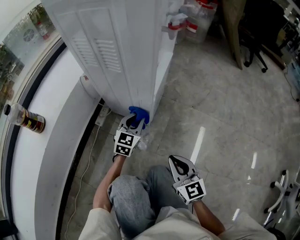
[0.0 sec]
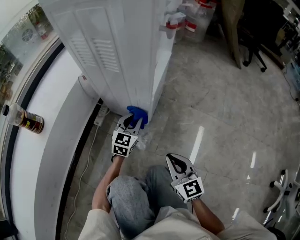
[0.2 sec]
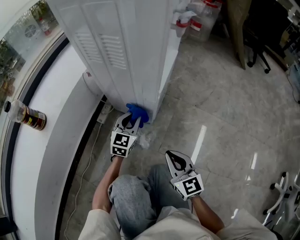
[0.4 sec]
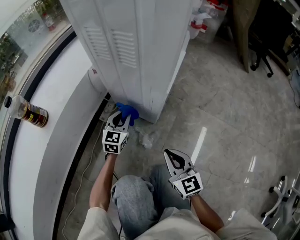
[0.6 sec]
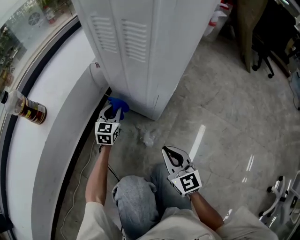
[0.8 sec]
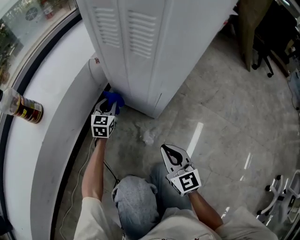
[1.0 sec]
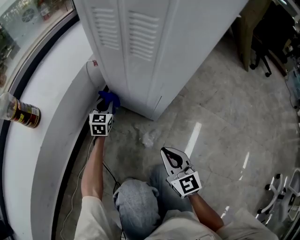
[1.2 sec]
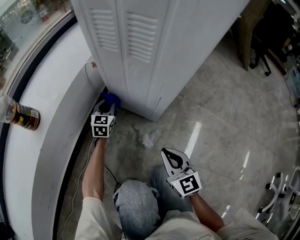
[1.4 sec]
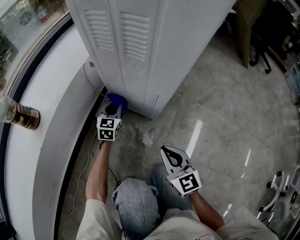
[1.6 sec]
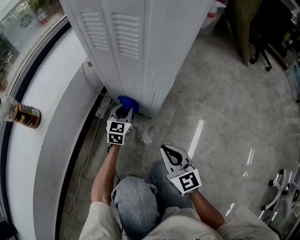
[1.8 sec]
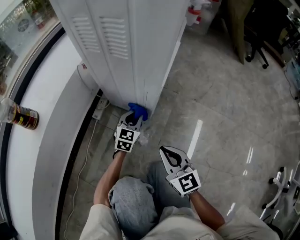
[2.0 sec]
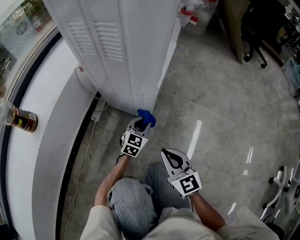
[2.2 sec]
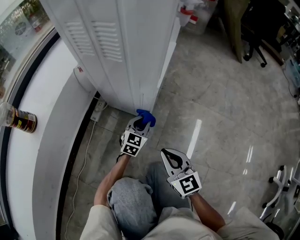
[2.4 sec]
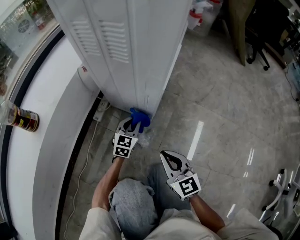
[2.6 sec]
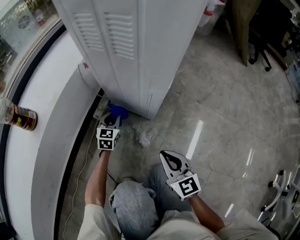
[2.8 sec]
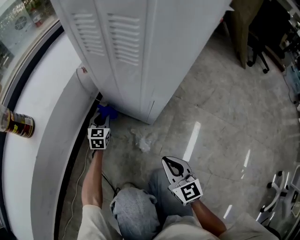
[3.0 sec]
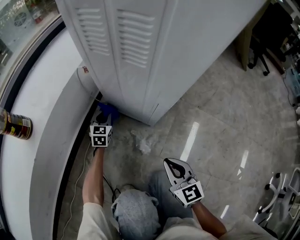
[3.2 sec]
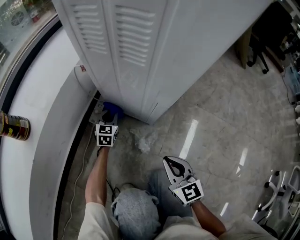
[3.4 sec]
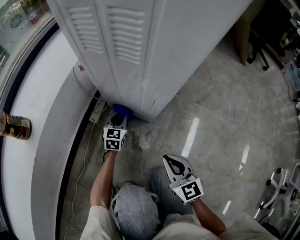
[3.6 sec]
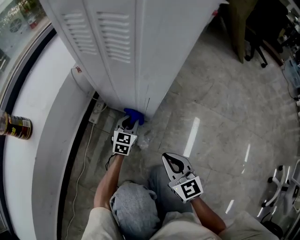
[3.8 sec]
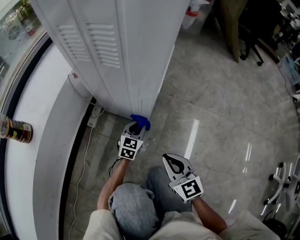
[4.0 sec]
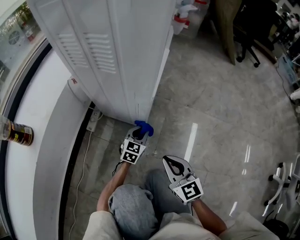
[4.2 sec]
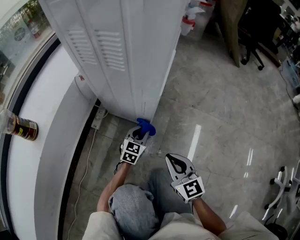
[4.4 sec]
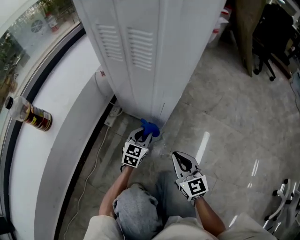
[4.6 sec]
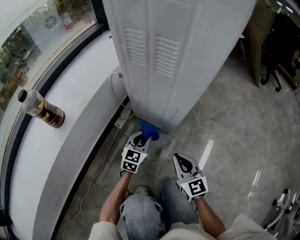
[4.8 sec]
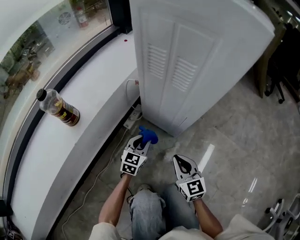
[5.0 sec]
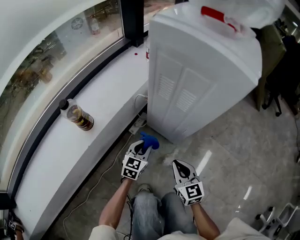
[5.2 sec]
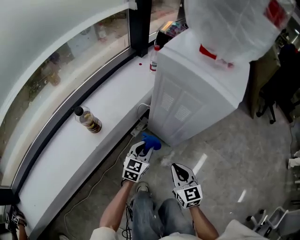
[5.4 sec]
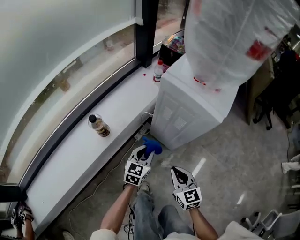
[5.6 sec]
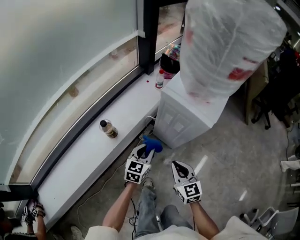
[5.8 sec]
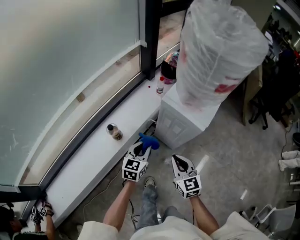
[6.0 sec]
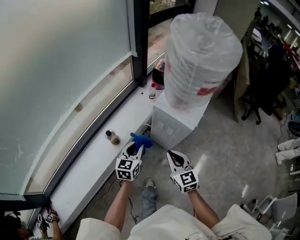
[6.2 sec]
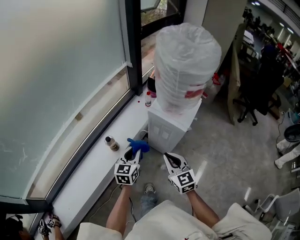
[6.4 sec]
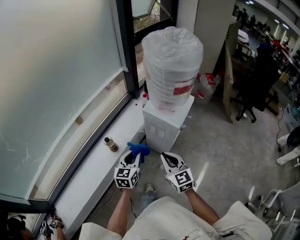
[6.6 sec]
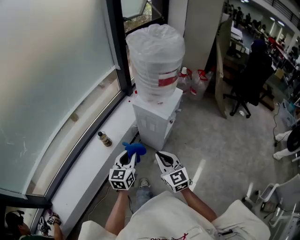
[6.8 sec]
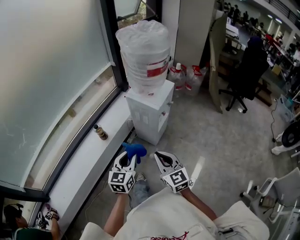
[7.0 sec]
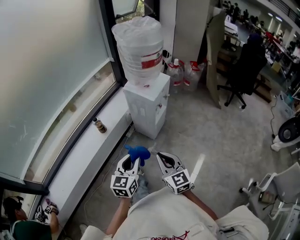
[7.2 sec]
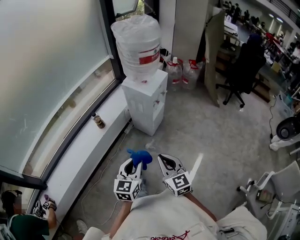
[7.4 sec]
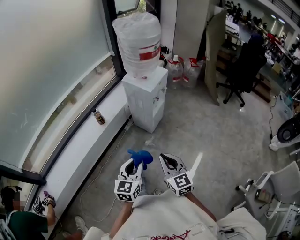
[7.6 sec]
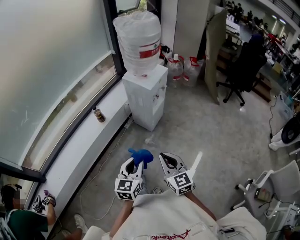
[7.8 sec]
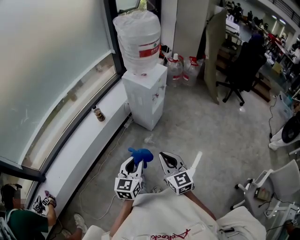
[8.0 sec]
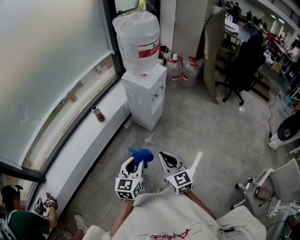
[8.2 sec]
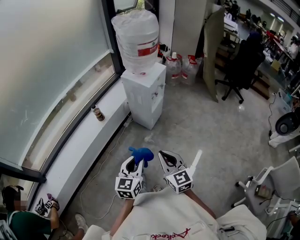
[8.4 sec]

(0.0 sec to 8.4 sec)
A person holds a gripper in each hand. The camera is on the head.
0.0 sec - 1.4 sec: The right gripper goes about 10 cm to the left and forward. The left gripper heads to the left, forward and downward, covering approximately 25 cm.
1.4 sec - 2.8 sec: The left gripper moves backward, approximately 5 cm, and reaches approximately 20 cm to the right, then returns.
2.8 sec - 4.2 sec: The left gripper is displaced to the right by some 20 cm, and turns by about 20 degrees.
4.2 sec - 5.6 sec: The grippers both shift upward and to the left by about 40 cm. The left gripper swivels some 30 degrees.
5.6 sec - 7.0 sec: Both grippers move upward and backward, roughly 40 cm.
7.0 sec - 8.4 sec: Both grippers move backward, roughly 20 cm.

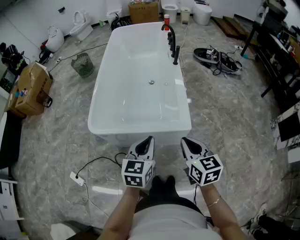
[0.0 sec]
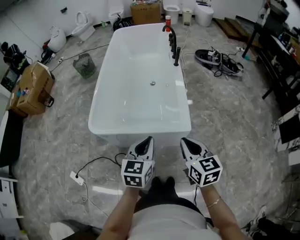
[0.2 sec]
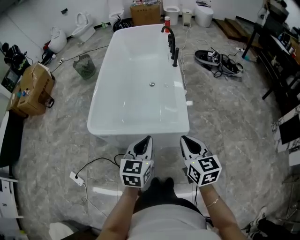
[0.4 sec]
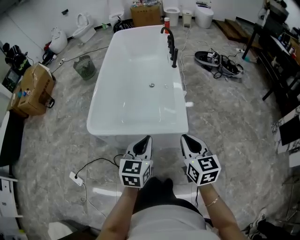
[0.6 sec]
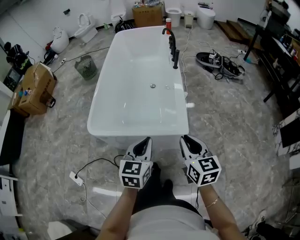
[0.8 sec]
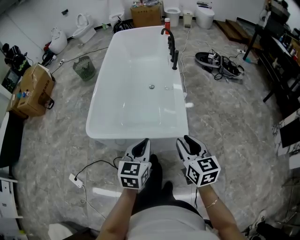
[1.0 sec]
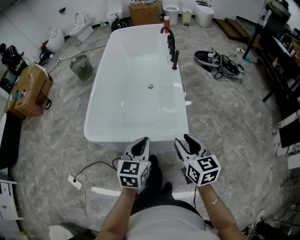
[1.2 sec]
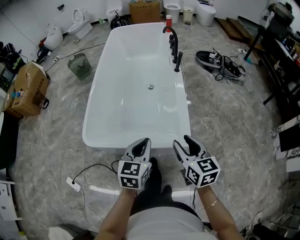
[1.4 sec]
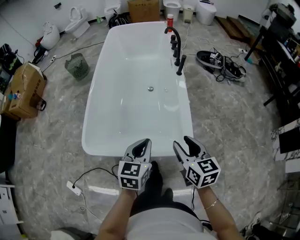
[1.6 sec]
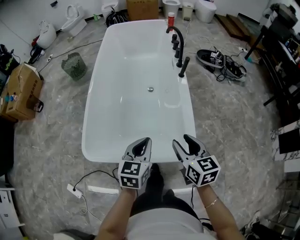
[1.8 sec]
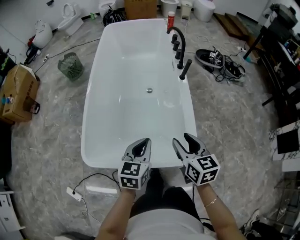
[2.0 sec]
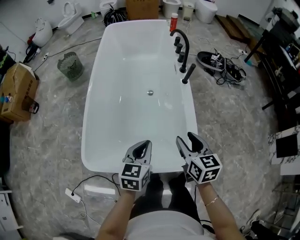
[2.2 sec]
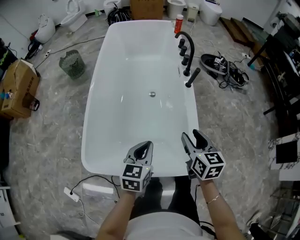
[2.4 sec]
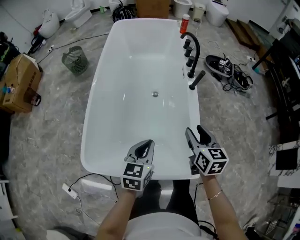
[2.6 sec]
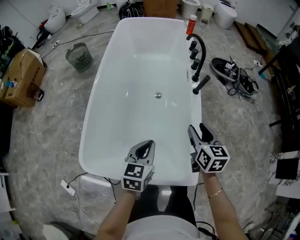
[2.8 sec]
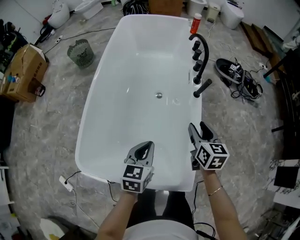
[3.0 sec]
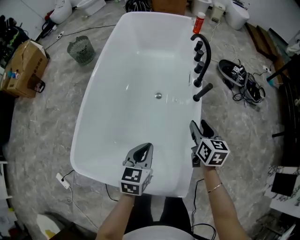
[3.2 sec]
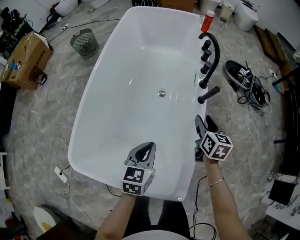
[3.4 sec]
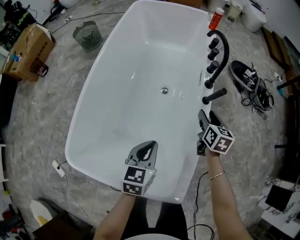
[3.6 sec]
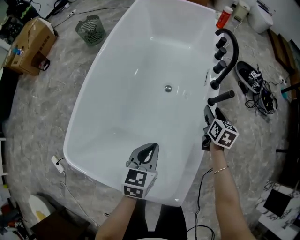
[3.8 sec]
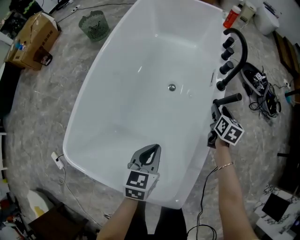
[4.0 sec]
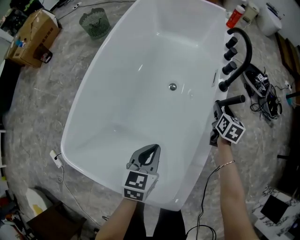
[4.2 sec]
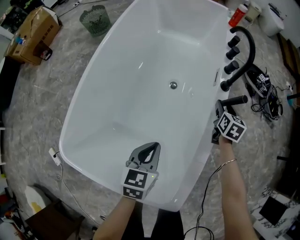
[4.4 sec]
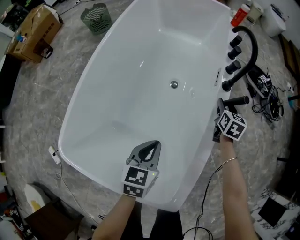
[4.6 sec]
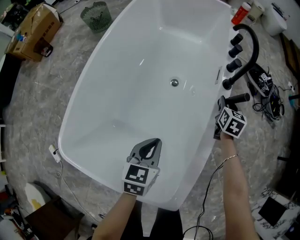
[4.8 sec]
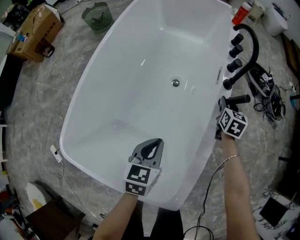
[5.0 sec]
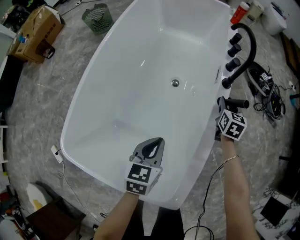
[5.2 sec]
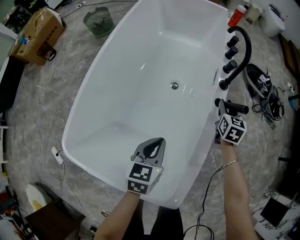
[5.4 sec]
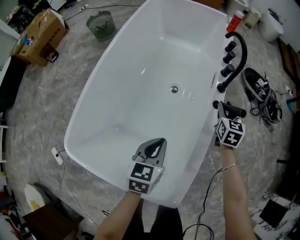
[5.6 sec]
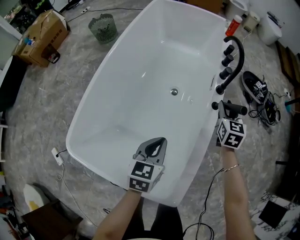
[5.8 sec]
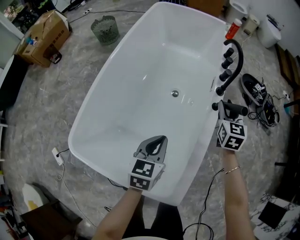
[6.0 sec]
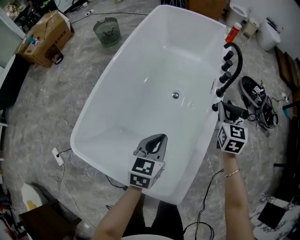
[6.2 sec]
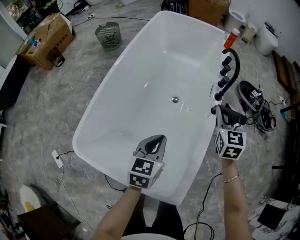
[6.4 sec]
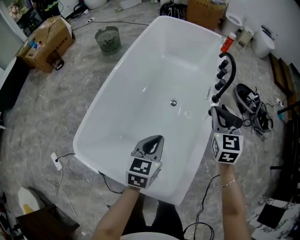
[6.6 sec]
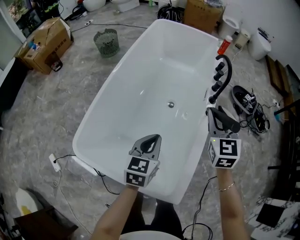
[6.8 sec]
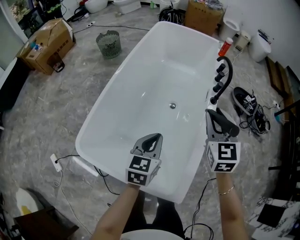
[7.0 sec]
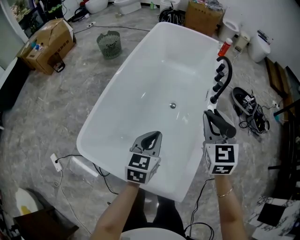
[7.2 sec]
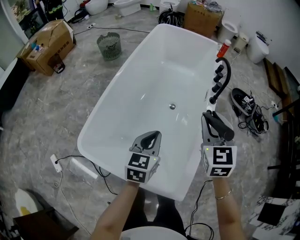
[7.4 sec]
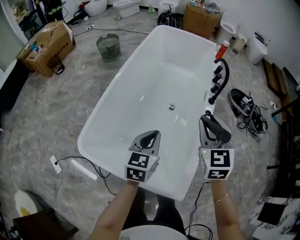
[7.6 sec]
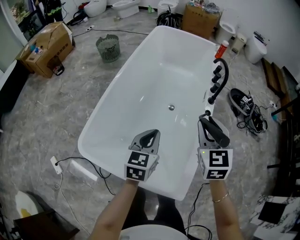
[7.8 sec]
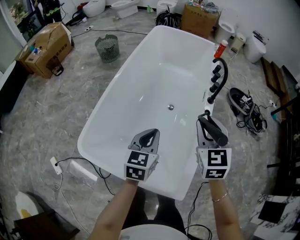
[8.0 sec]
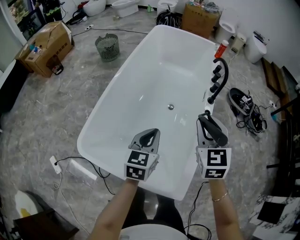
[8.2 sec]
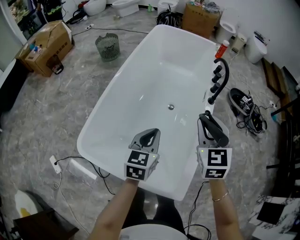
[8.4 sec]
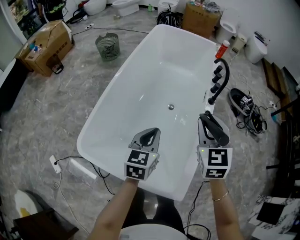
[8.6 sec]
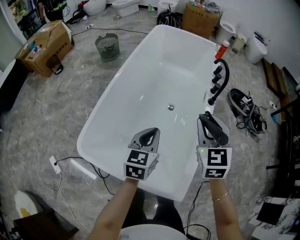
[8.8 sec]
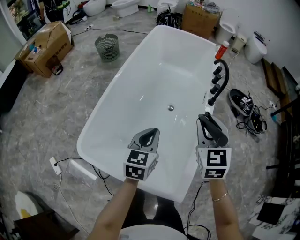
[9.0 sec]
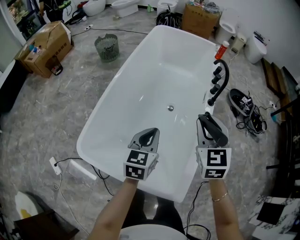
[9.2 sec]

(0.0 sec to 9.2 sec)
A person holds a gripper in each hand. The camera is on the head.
0.0 sec - 1.6 sec: The grippers both shift forward by some 20 cm. The right gripper opens.
1.6 sec - 3.0 sec: The two grippers go about 35 cm forward.
3.0 sec - 4.6 sec: The left gripper is displaced downward and forward by some 20 cm. The right gripper shifts roughly 40 cm forward and downward.
4.6 sec - 6.2 sec: The right gripper is displaced upward and backward by some 25 cm, and rotates about 20 degrees. Meanwhile the left gripper heads upward, covering roughly 10 cm.
6.2 sec - 7.6 sec: The left gripper heads upward, backward and to the left, covering some 15 cm. Meanwhile the right gripper moves backward, upward and to the left, roughly 30 cm.
7.6 sec - 9.2 sec: The grippers stay close to where they were, moving slightly.

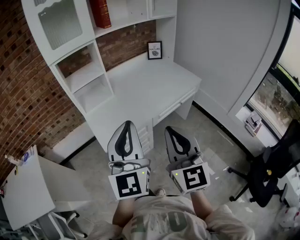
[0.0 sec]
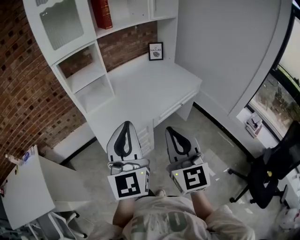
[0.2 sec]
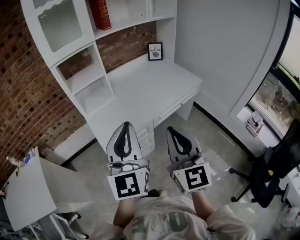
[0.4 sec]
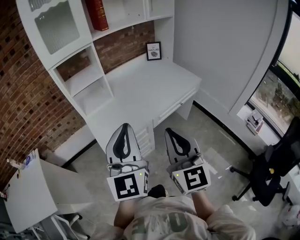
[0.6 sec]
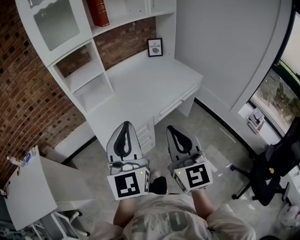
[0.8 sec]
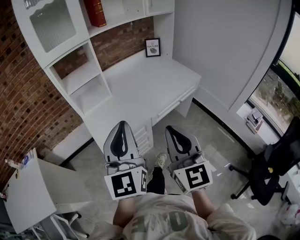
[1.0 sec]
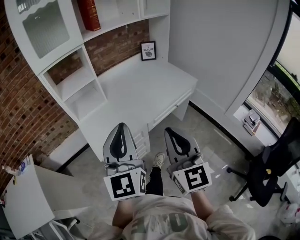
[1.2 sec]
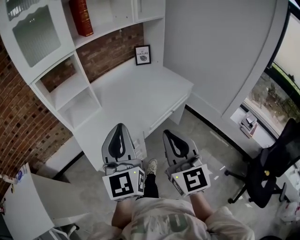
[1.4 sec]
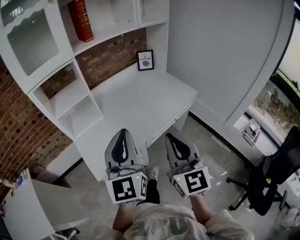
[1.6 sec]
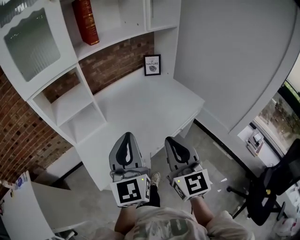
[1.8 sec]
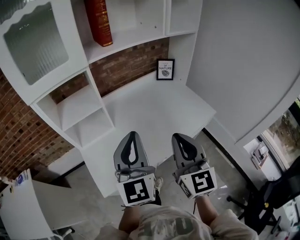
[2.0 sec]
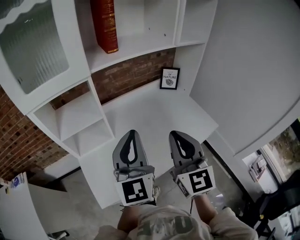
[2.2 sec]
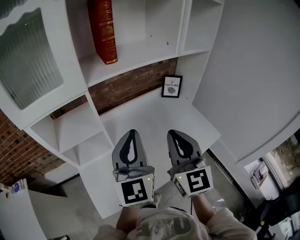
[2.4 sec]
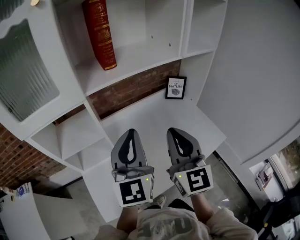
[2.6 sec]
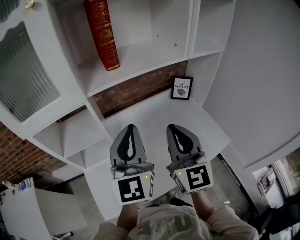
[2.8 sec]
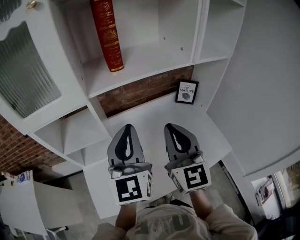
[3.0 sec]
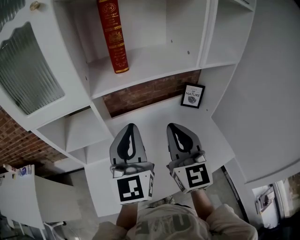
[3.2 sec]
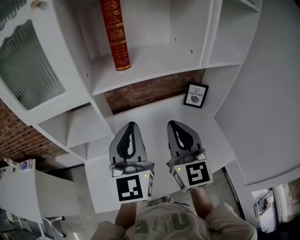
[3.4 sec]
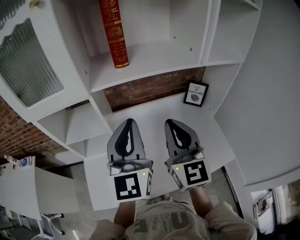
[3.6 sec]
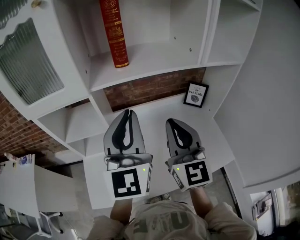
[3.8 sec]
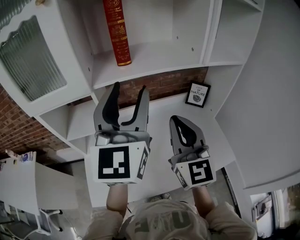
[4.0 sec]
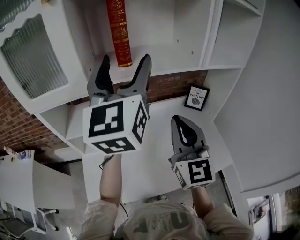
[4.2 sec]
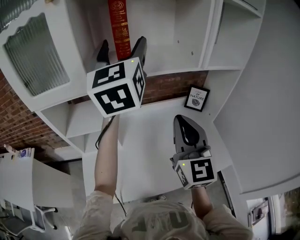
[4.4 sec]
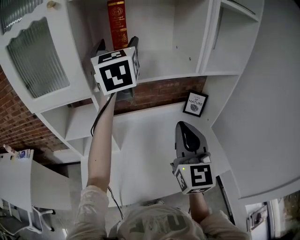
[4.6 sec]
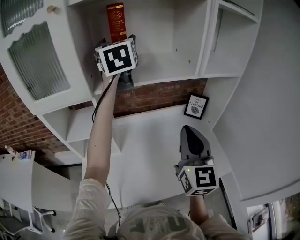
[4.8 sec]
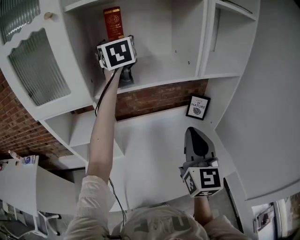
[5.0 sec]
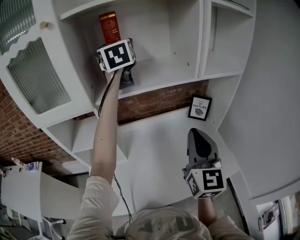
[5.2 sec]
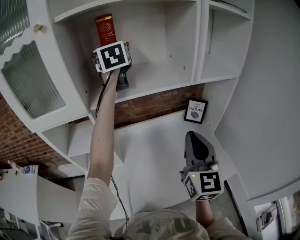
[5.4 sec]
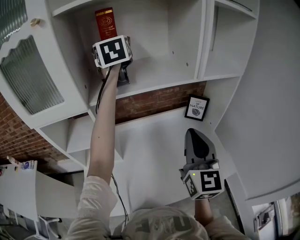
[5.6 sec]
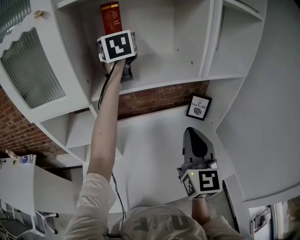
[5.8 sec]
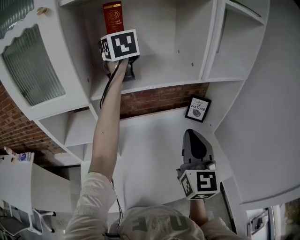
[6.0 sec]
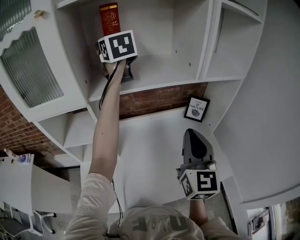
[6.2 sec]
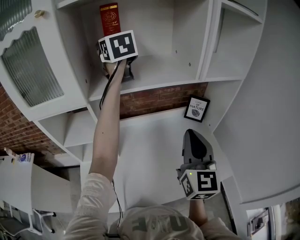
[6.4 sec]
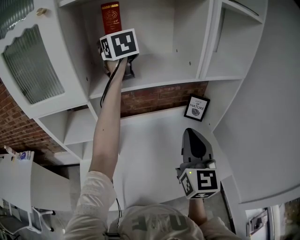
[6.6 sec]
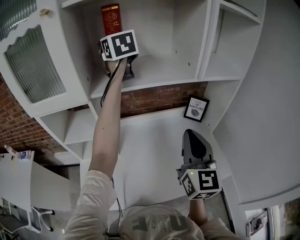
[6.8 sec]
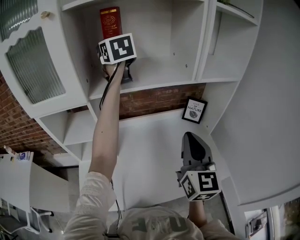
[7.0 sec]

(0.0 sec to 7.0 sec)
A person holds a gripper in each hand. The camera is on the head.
0.0 sec - 1.4 sec: Both grippers travel together forward, about 10 cm.
1.4 sec - 2.8 sec: The two grippers go some 40 cm forward.
2.8 sec - 4.2 sec: The right gripper ends up approximately 5 cm from where it was. Meanwhile the left gripper is displaced upward and forward by approximately 20 cm, and opens.
4.2 sec - 5.6 sec: The right gripper shifts approximately 5 cm to the right. The left gripper is displaced forward by some 25 cm, and turns by approximately 20 degrees.
5.6 sec - 7.0 sec: The left gripper closes.
